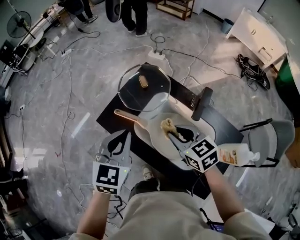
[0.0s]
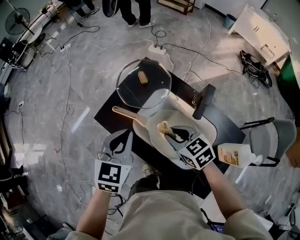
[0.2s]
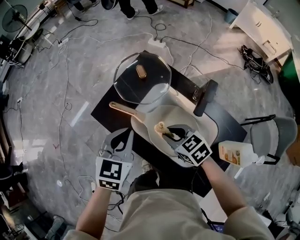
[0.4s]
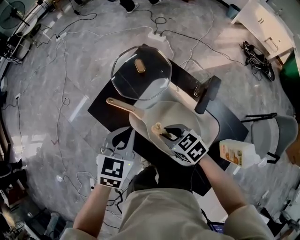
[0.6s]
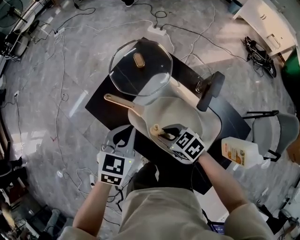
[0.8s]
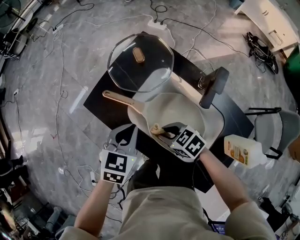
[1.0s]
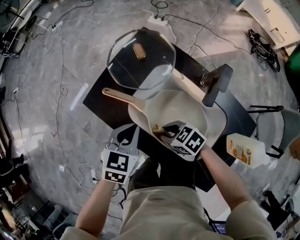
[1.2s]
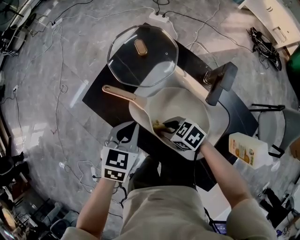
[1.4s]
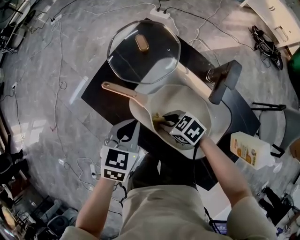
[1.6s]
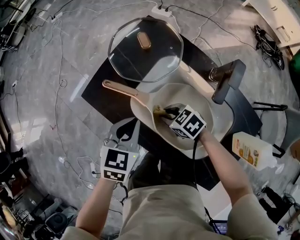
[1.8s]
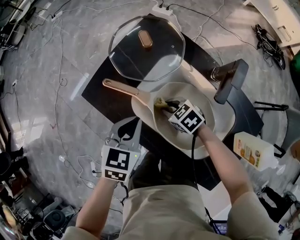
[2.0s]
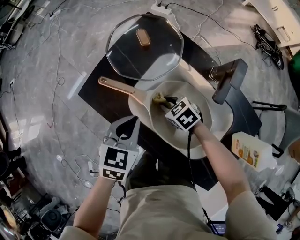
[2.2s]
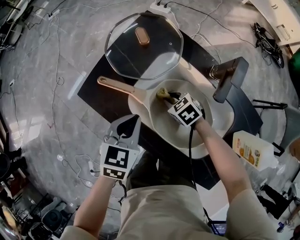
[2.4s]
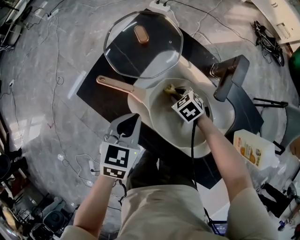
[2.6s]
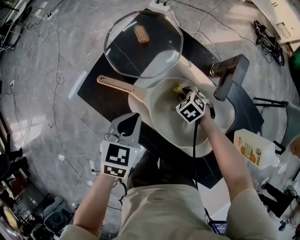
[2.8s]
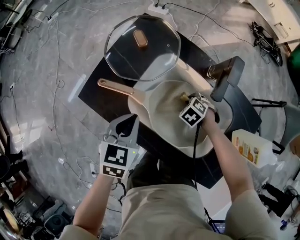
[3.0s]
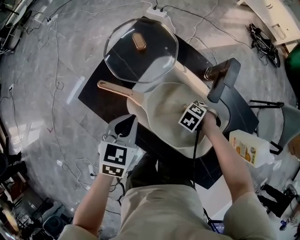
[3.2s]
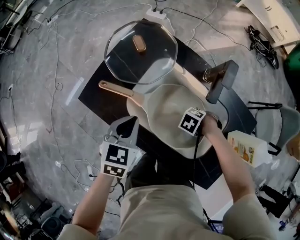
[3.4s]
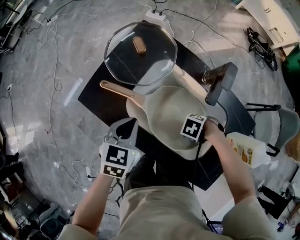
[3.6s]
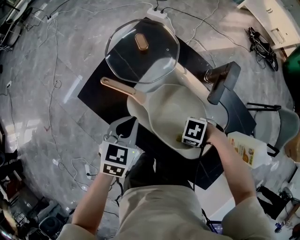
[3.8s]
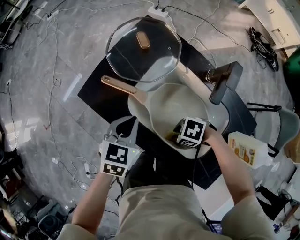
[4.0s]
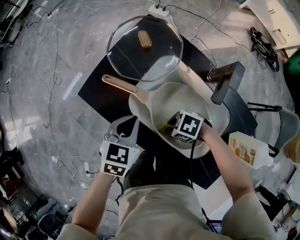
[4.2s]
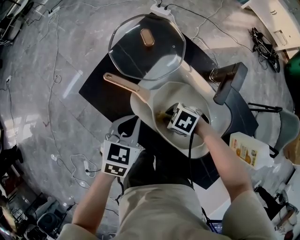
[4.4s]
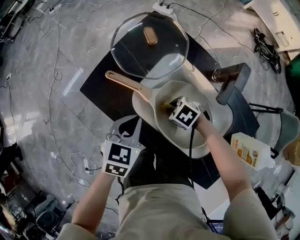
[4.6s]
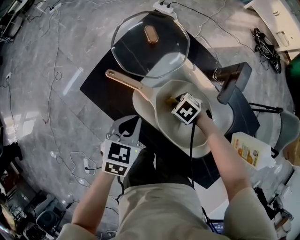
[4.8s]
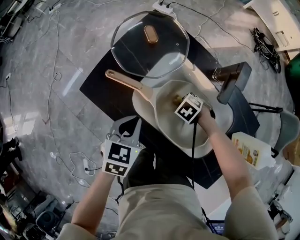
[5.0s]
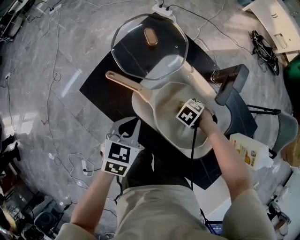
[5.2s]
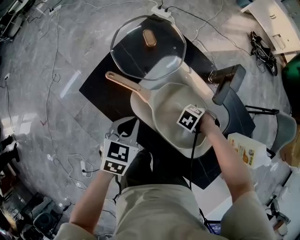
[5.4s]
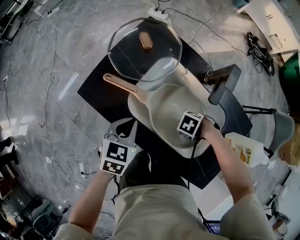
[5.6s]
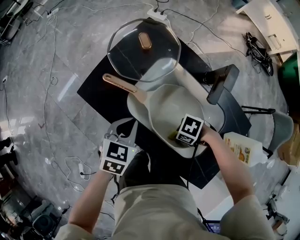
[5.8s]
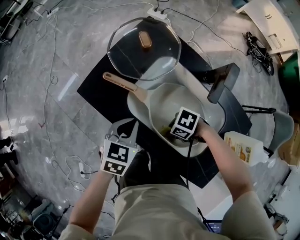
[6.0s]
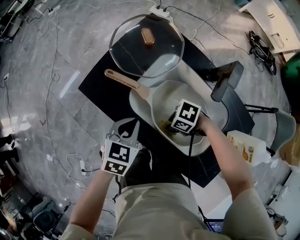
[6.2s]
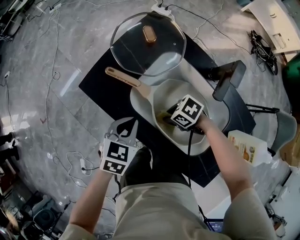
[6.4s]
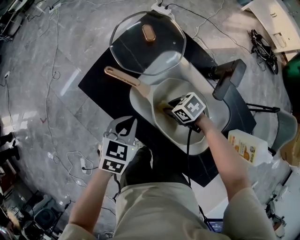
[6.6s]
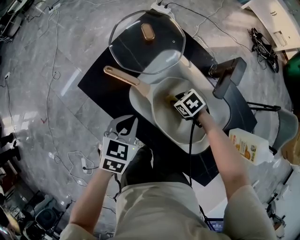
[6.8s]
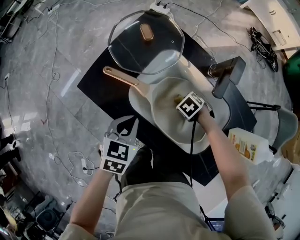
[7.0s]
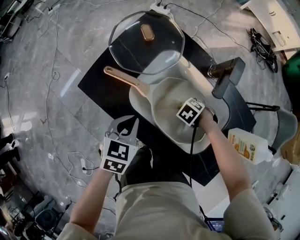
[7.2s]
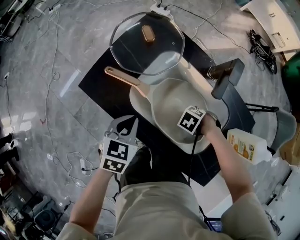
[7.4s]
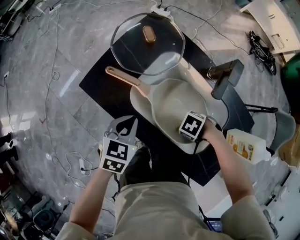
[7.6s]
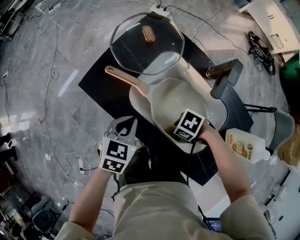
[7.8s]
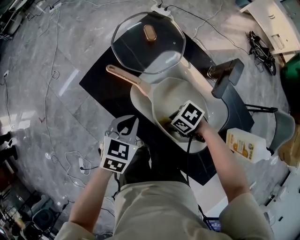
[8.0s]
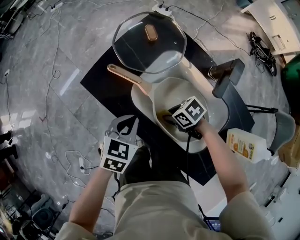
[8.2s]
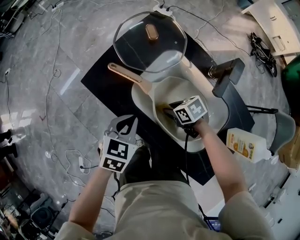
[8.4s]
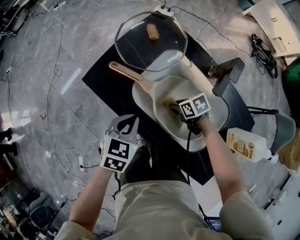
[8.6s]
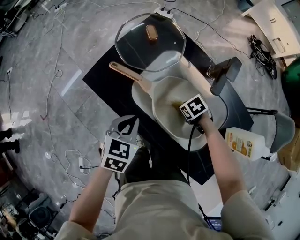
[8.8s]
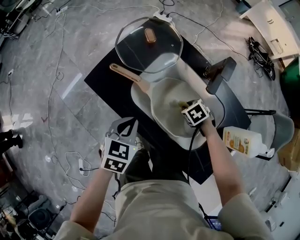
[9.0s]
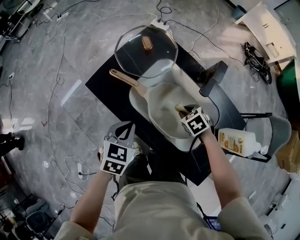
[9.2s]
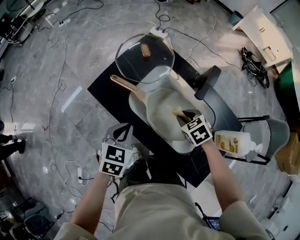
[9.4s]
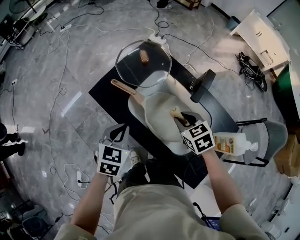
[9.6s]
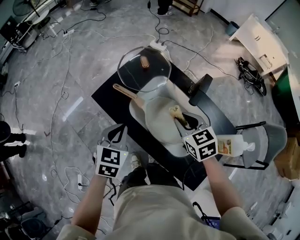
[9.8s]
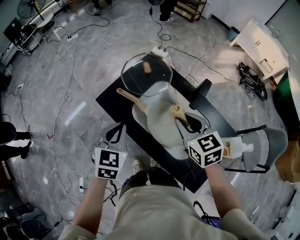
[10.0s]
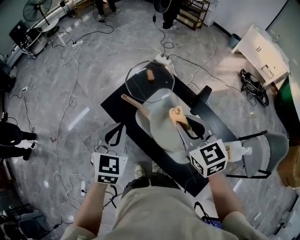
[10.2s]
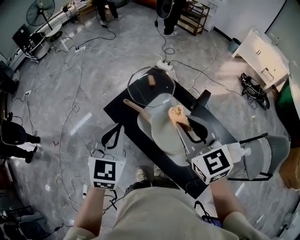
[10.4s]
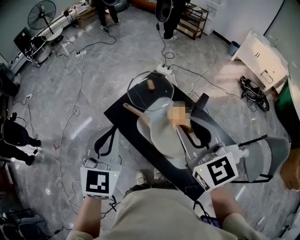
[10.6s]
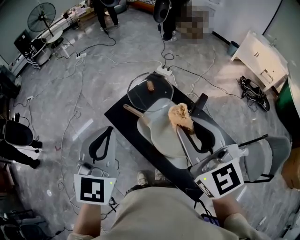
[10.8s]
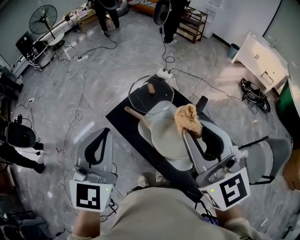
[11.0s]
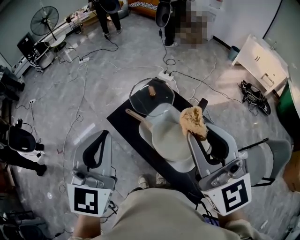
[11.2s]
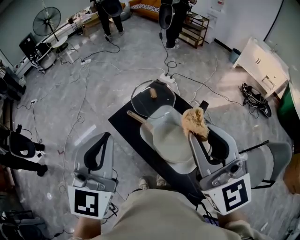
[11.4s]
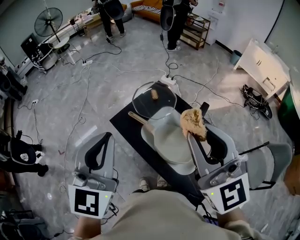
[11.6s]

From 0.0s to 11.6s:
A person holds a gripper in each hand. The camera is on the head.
From 0.0s to 1.4s: Both grippers move downward, some 20 cm. The left gripper rotates approximately 20 degrees, while the right gripper turns by some 40 degrees.
From 1.4s to 2.8s: The right gripper shifts by about 20 cm, and swivels about 40 degrees.
From 2.8s to 4.4s: The right gripper changes place by about 15 cm, and rotates about 30 degrees.
From 4.4s to 5.8s: The right gripper reaches roughly 5 cm downward, then returns, and changes its angle by approximately 20 degrees.
From 5.8s to 7.2s: The right gripper moves approximately 15 cm, and changes its angle by roughly 30 degrees.
From 7.2s to 8.8s: The right gripper swivels about 20 degrees.
From 8.8s to 10.2s: The left gripper travels upward by about 20 cm, and turns by some 30 degrees; the right gripper heads upward, covering approximately 40 cm, and points its fingers some 50 degrees further upward.
From 10.2s to 11.6s: The grippers both shift upward by roughly 20 cm. The left gripper changes its angle by about 20 degrees. The right gripper turns by approximately 30 degrees.

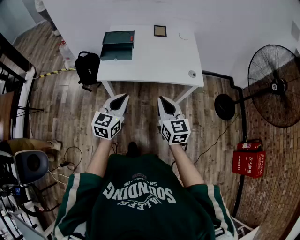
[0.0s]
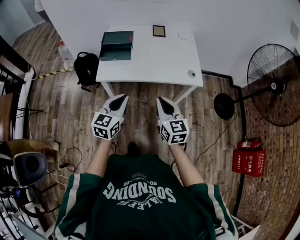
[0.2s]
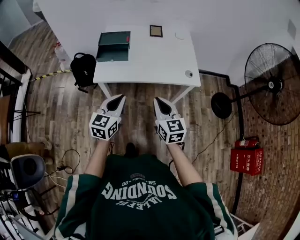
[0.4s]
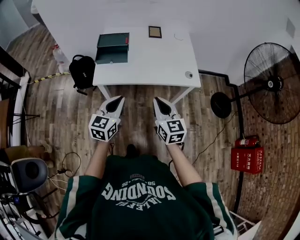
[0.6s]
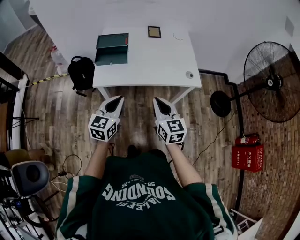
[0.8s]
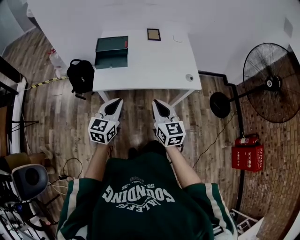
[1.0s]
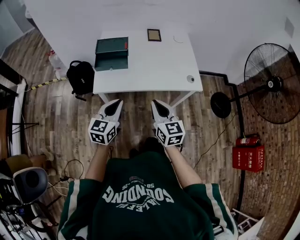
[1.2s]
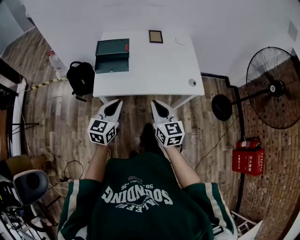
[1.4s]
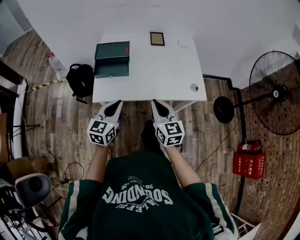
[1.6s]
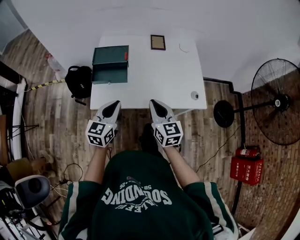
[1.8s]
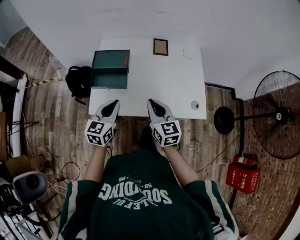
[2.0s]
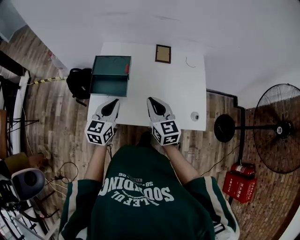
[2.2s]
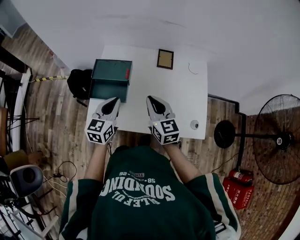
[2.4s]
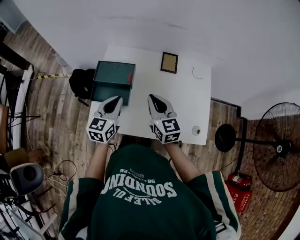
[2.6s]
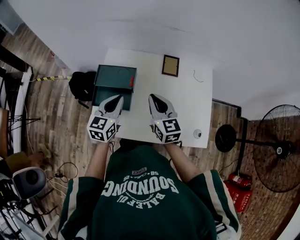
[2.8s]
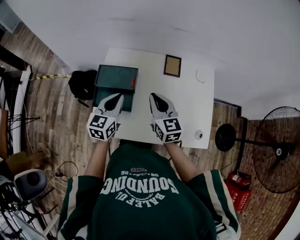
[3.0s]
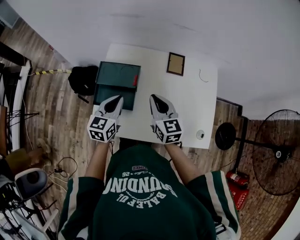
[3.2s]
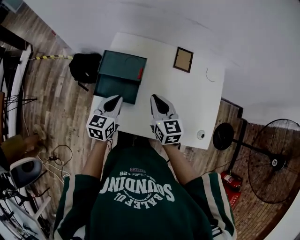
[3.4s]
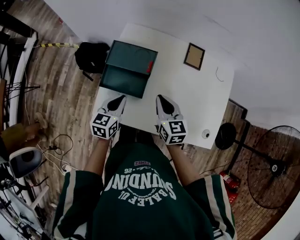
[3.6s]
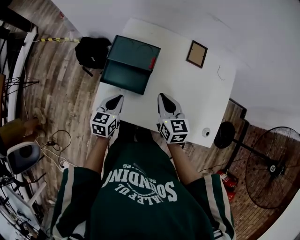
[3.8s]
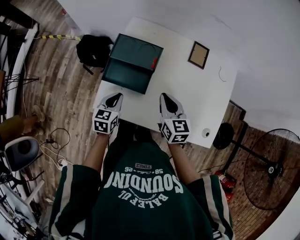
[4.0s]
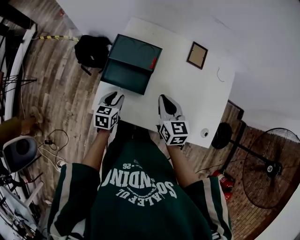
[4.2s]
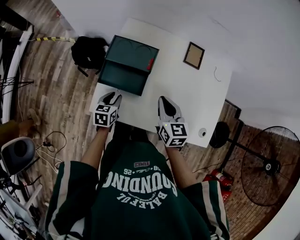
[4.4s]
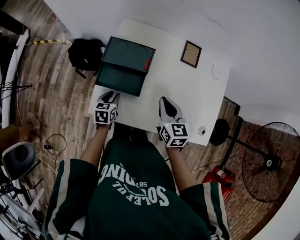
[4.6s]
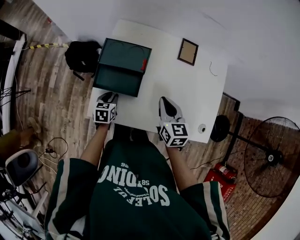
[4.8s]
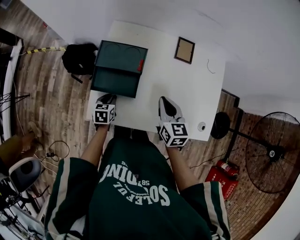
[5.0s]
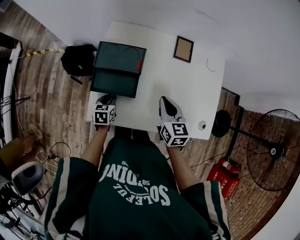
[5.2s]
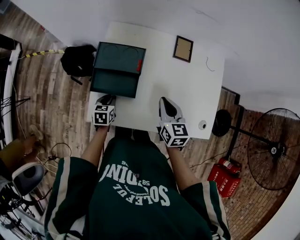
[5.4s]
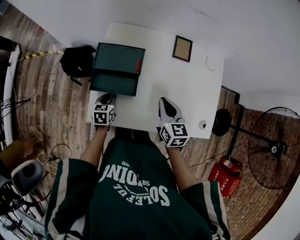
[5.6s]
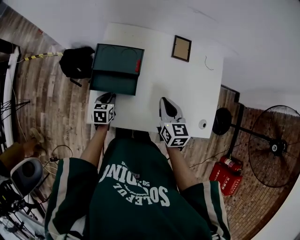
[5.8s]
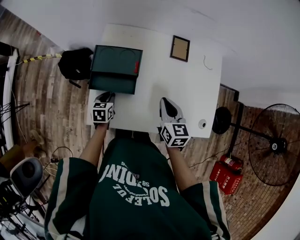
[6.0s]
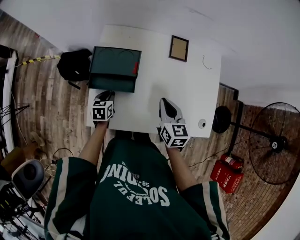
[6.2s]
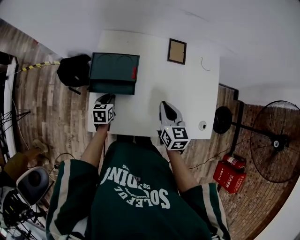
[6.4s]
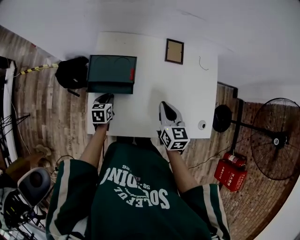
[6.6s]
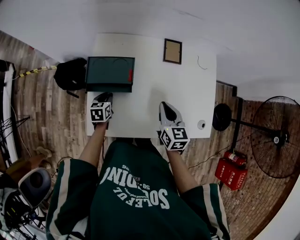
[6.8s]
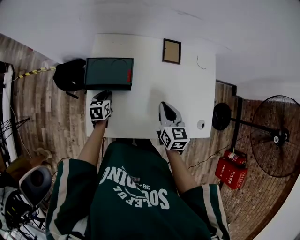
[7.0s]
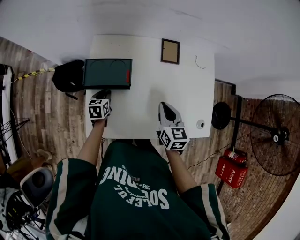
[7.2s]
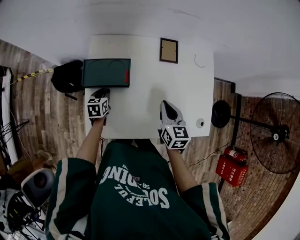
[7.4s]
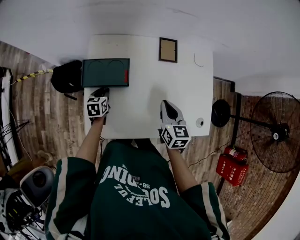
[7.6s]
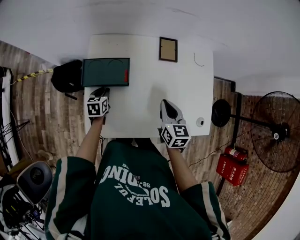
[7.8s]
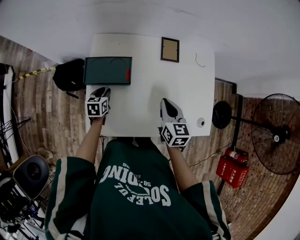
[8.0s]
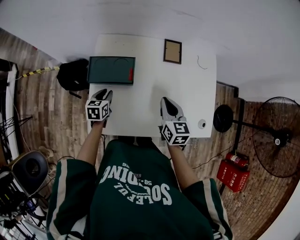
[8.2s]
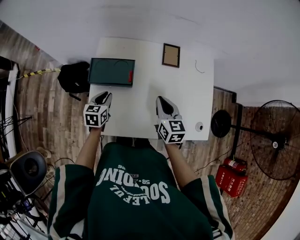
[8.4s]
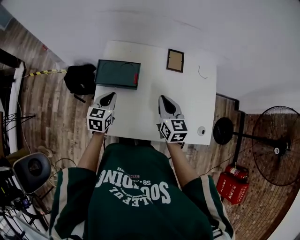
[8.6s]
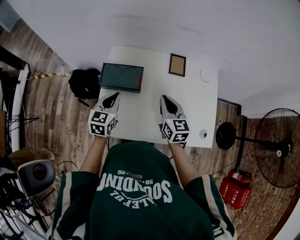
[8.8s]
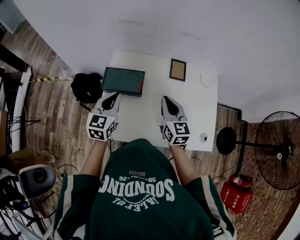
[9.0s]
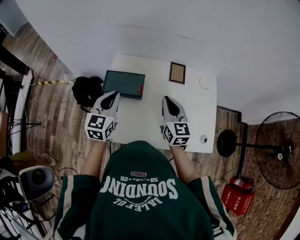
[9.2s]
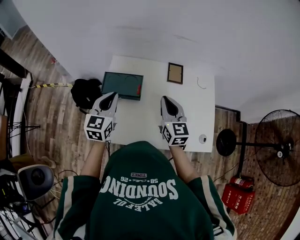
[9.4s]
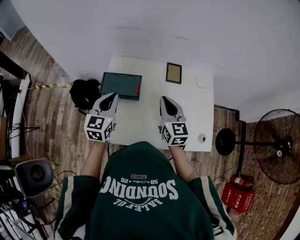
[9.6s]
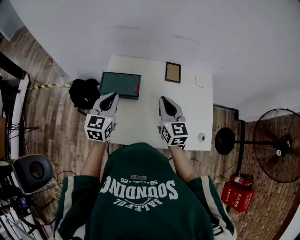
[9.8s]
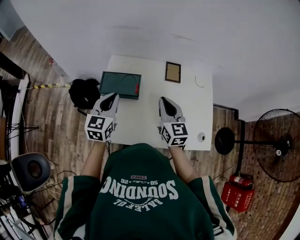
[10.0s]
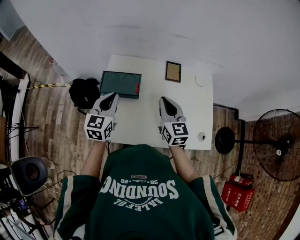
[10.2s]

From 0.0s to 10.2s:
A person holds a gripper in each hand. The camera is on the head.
From 0.0s to 1.4s: Both grippers move forward and to the left, roughly 10 cm.
From 1.4s to 3.0s: Both grippers move forward, approximately 35 cm.
From 3.0s to 4.4s: The left gripper travels downward and to the left by roughly 25 cm, turns by roughly 30 degrees, and opens its fingers; the right gripper shifts roughly 10 cm downward.
From 4.4s to 5.8s: The grippers move only a little.
From 5.8s to 7.2s: The left gripper is displaced forward by roughly 10 cm.
From 7.2s to 8.8s: The right gripper heads upward, covering some 5 cm. Meanwhile the left gripper shifts roughly 20 cm upward, and swivels roughly 30 degrees.
From 8.8s to 10.2s: The left gripper shifts roughly 5 cm upward.

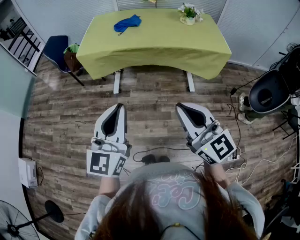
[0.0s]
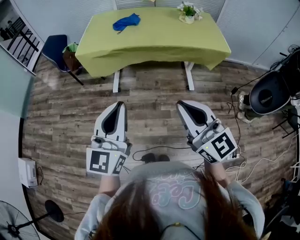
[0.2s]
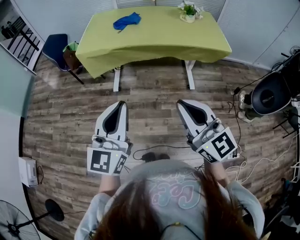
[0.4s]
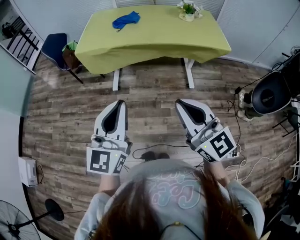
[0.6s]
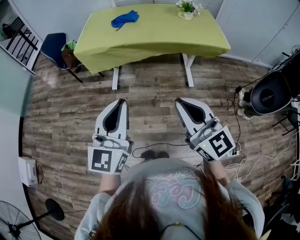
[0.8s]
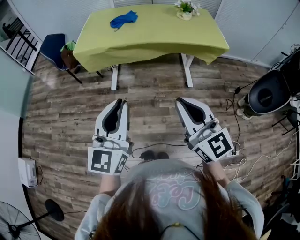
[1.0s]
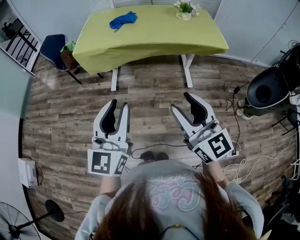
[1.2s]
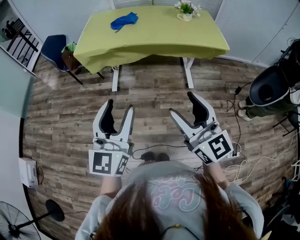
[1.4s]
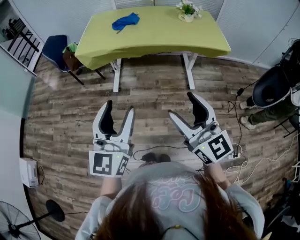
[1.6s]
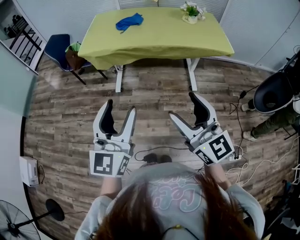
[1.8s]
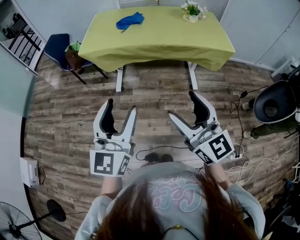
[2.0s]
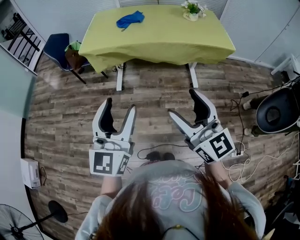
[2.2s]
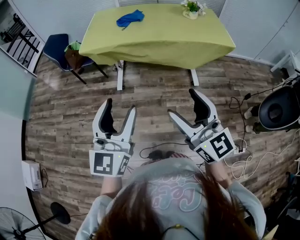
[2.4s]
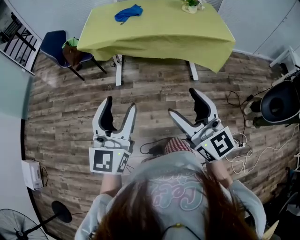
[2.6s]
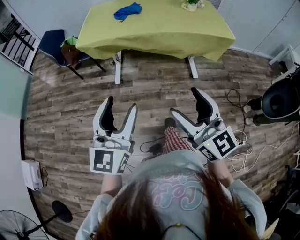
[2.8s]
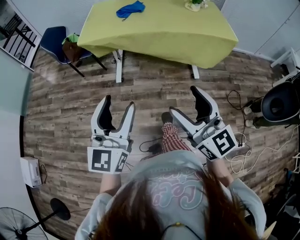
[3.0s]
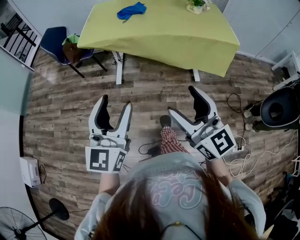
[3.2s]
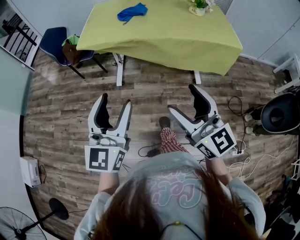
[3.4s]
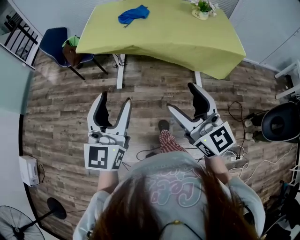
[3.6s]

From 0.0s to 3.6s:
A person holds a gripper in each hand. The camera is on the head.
From 0.0s to 1.8s: The left gripper opens its fingers, while the right gripper opens its fingers.
From 1.8s to 3.6s: The two grippers go approximately 10 cm forward.
